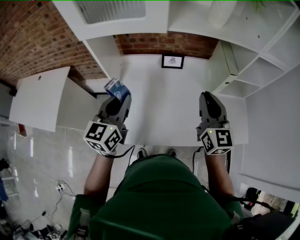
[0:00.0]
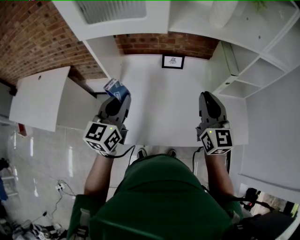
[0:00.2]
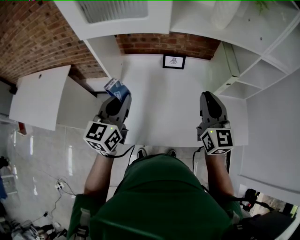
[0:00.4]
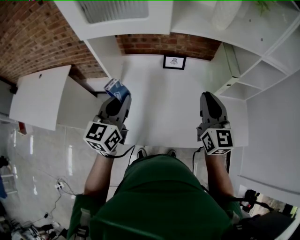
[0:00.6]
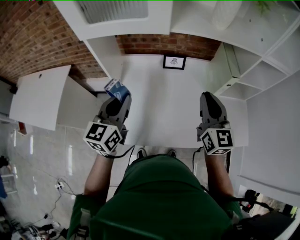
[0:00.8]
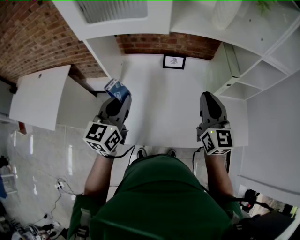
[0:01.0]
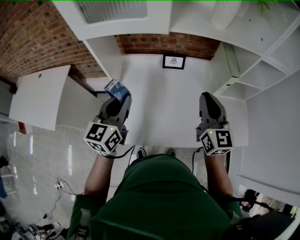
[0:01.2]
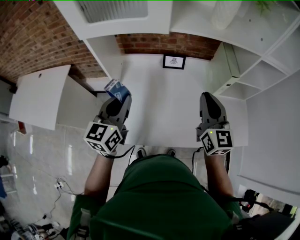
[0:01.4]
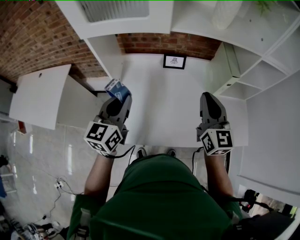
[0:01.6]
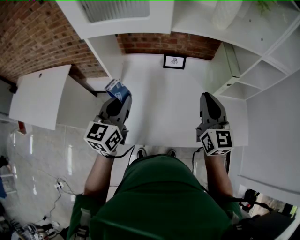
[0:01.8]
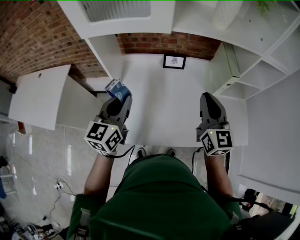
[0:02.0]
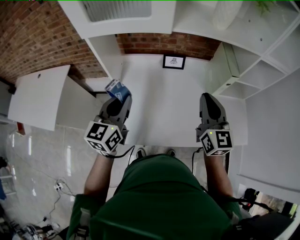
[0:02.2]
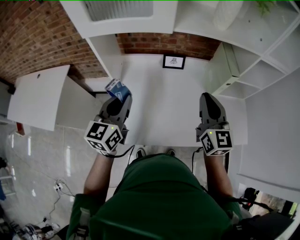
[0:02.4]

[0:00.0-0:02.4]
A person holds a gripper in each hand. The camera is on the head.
0:00.0 to 0:01.2: The two grippers keep their place.
0:01.2 to 0:02.4: Both grippers stay about where they are.

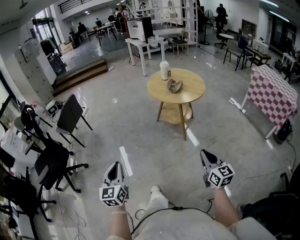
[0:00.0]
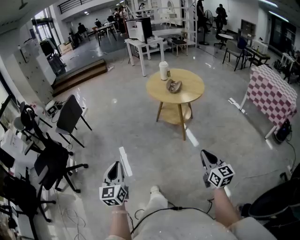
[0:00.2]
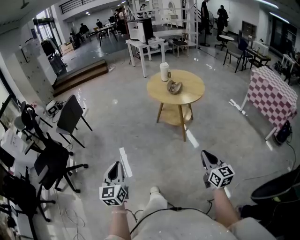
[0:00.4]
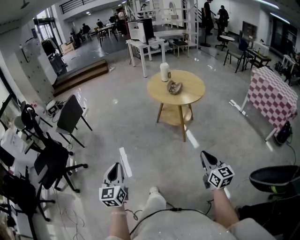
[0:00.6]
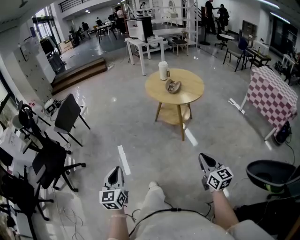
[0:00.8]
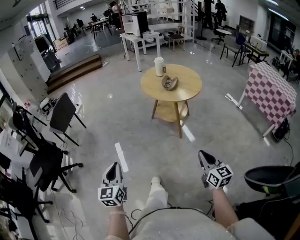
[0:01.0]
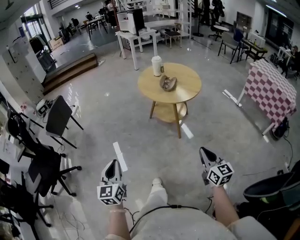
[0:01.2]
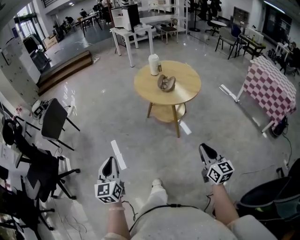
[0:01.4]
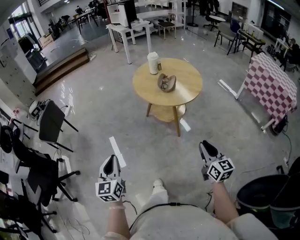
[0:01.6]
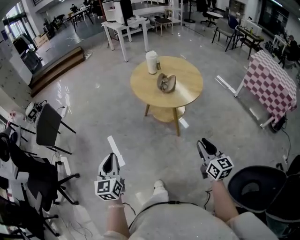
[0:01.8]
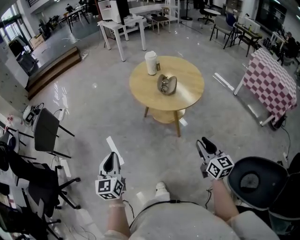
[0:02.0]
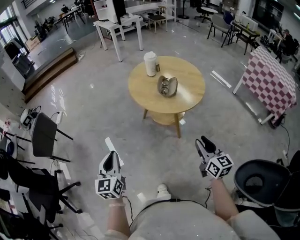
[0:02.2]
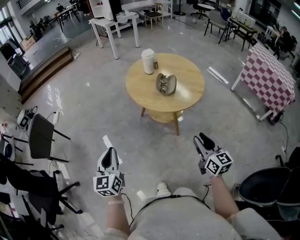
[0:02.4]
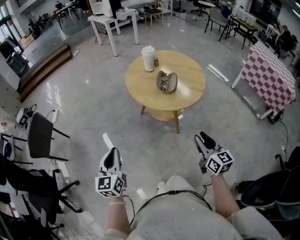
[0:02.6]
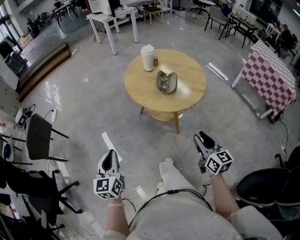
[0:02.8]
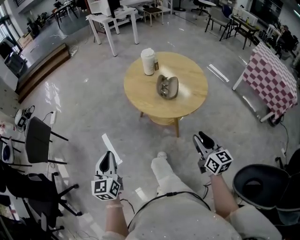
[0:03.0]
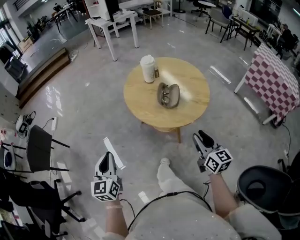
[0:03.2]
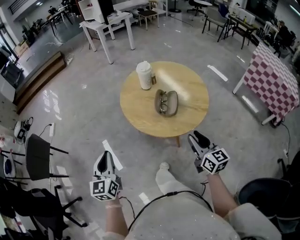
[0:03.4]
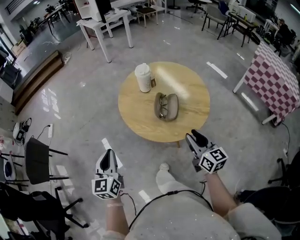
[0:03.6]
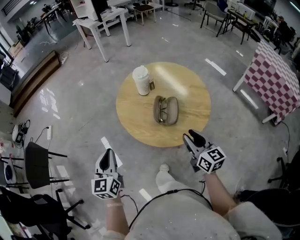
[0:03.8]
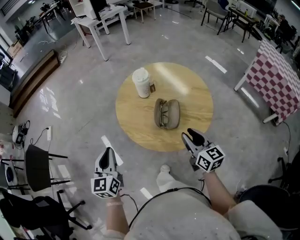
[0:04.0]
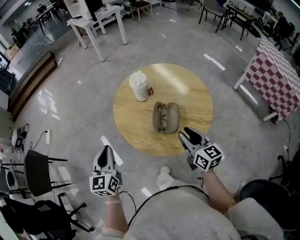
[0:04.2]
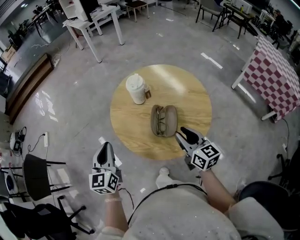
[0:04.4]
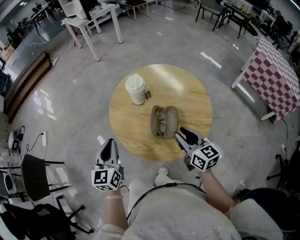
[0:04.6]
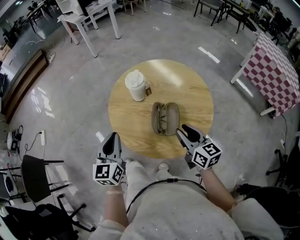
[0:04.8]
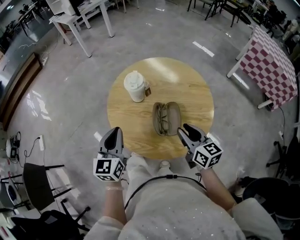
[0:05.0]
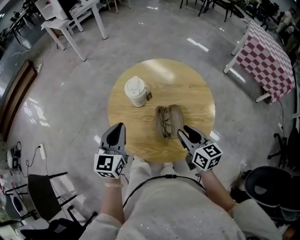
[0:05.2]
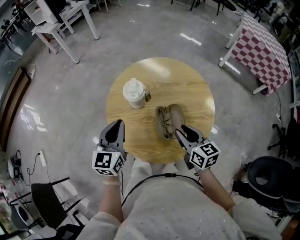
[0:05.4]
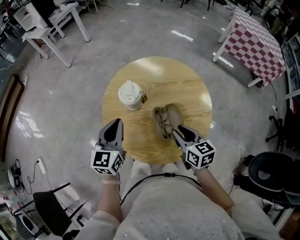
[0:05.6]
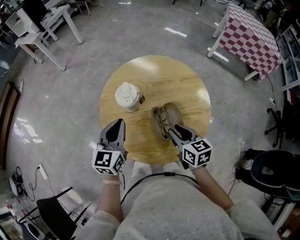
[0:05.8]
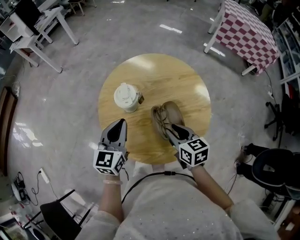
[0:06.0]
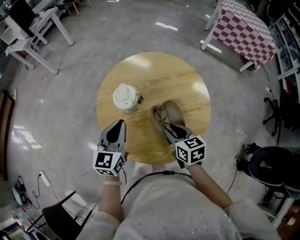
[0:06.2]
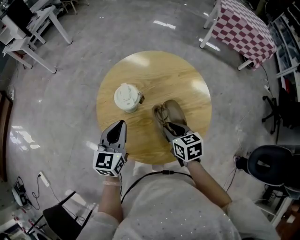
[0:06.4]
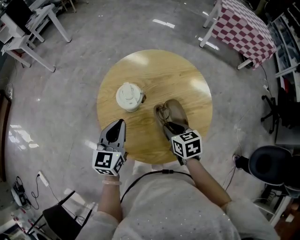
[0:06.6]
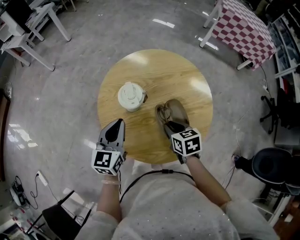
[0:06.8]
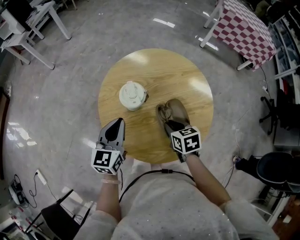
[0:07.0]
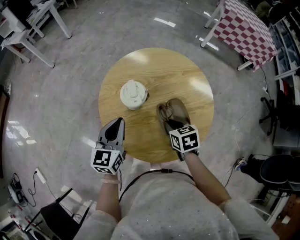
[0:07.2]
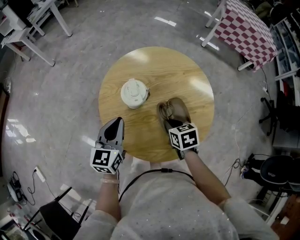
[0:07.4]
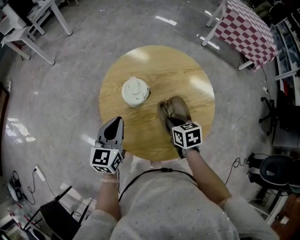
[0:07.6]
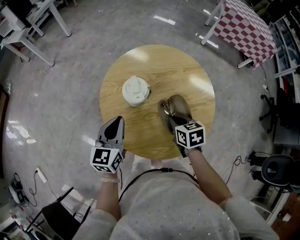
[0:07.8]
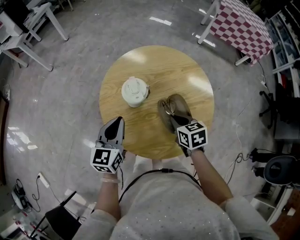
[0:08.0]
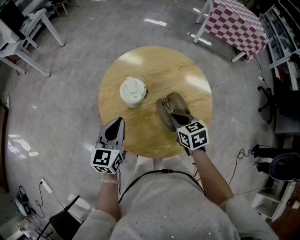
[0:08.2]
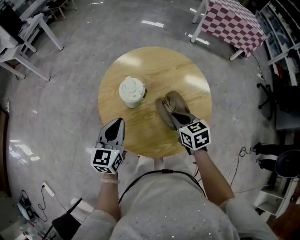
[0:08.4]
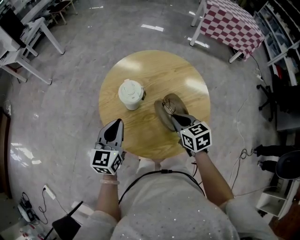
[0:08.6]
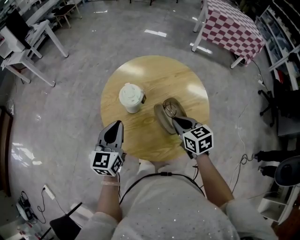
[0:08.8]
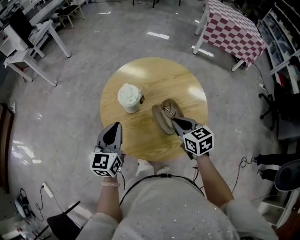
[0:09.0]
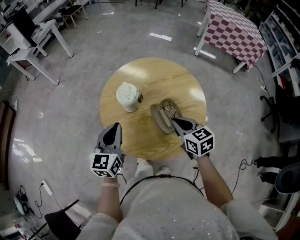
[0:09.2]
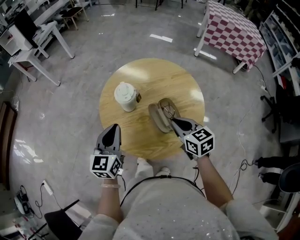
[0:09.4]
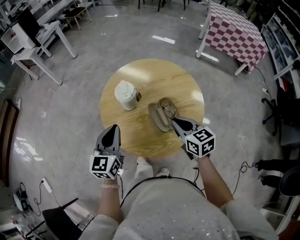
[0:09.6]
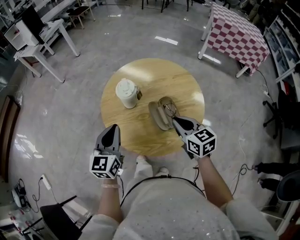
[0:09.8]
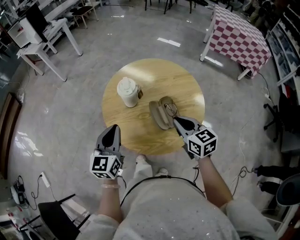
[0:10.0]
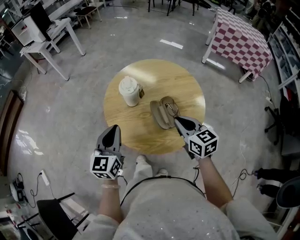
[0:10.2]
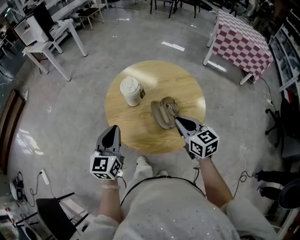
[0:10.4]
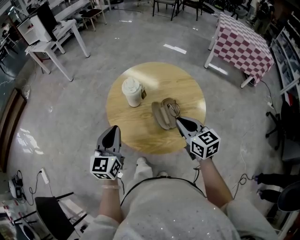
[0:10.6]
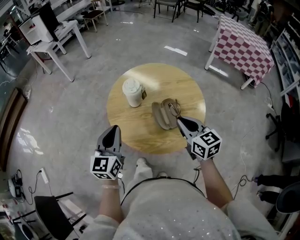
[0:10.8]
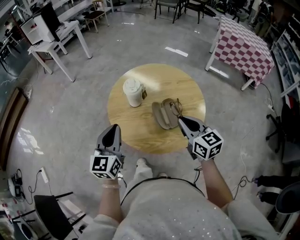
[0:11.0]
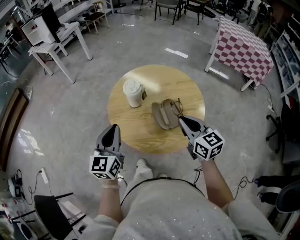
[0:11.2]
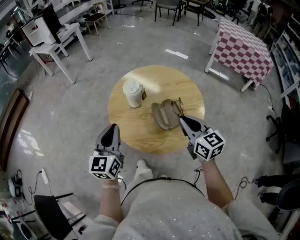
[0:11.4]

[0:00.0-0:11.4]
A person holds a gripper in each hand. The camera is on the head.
0:00.0 to 0:01.4: The grippers both shift forward by roughly 15 cm.
0:01.4 to 0:02.8: The grippers both shift forward by some 20 cm. The right gripper opens its fingers.
0:02.8 to 0:04.2: Both grippers move forward, roughly 30 cm.
0:04.2 to 0:05.6: The right gripper shifts by roughly 10 cm, and rotates roughly 20 degrees. The left gripper moves roughly 20 cm, and changes its angle by about 30 degrees.
0:05.6 to 0:07.2: The left gripper changes place by approximately 5 cm. The right gripper is displaced downward by about 10 cm, and rotates approximately 30 degrees.
0:07.2 to 0:08.6: The right gripper goes about 5 cm upward.
0:08.6 to 0:10.0: The left gripper shifts about 5 cm backward; the right gripper goes some 5 cm upward.
0:10.0 to 0:11.4: The left gripper ends up roughly 5 cm from where it was; the right gripper shifts roughly 5 cm upward.

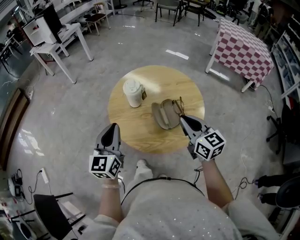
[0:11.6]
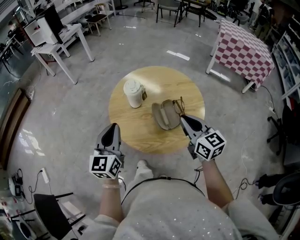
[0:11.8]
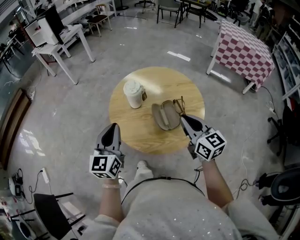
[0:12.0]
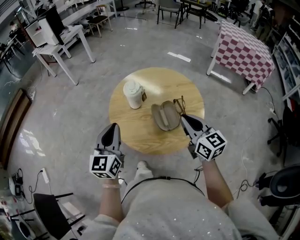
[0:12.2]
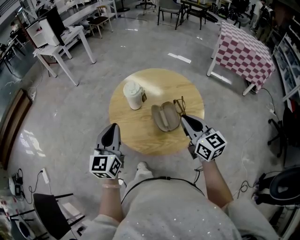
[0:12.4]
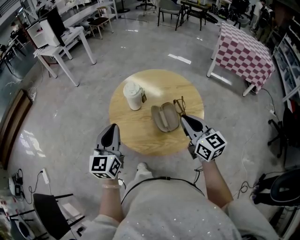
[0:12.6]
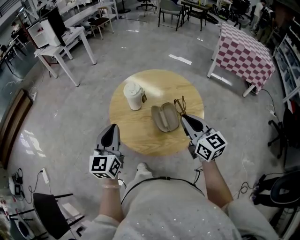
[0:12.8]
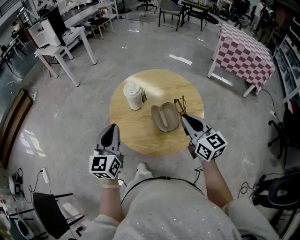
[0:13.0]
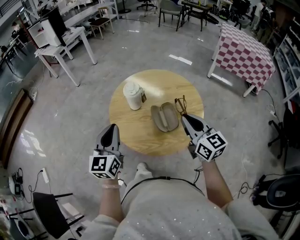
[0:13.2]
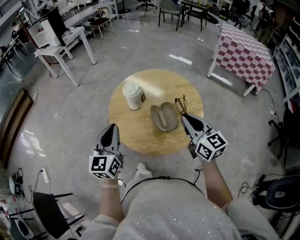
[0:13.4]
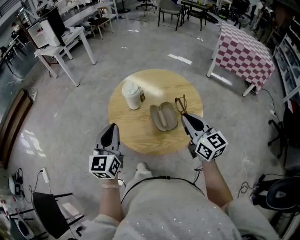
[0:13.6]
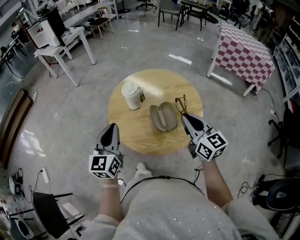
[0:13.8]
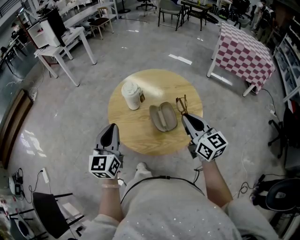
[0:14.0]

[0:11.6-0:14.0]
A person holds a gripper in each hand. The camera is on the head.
0:11.6 to 0:14.0: The grippers stay close to where they were, moving slightly.

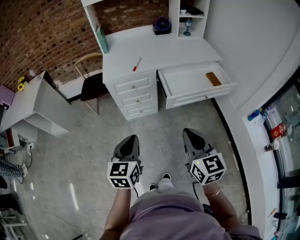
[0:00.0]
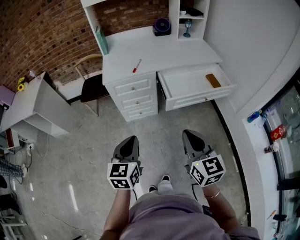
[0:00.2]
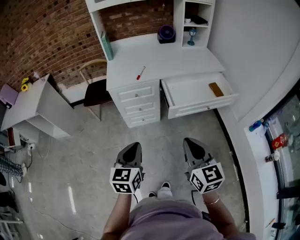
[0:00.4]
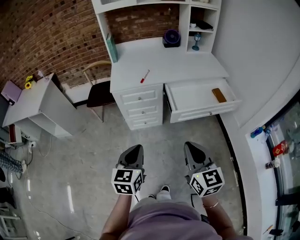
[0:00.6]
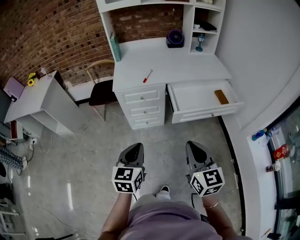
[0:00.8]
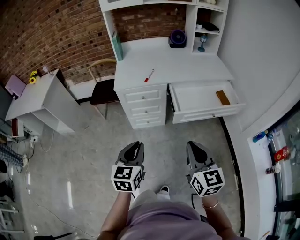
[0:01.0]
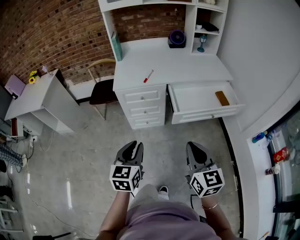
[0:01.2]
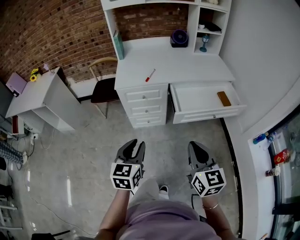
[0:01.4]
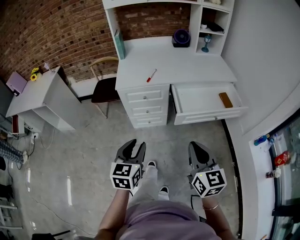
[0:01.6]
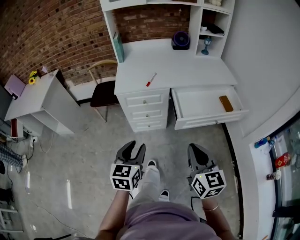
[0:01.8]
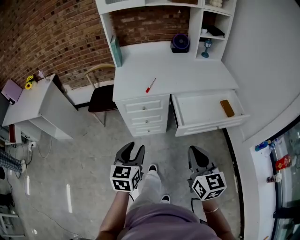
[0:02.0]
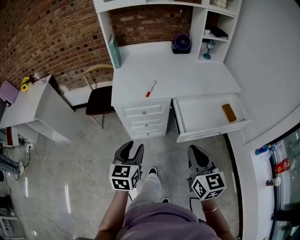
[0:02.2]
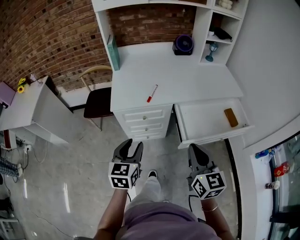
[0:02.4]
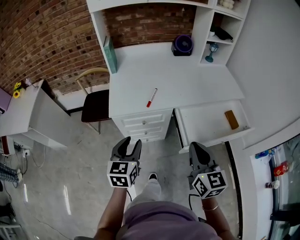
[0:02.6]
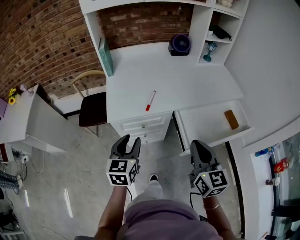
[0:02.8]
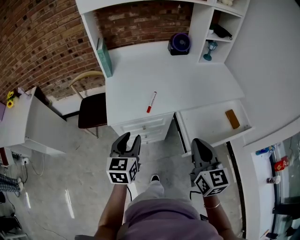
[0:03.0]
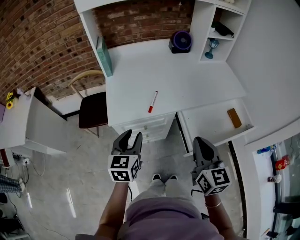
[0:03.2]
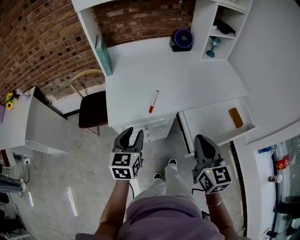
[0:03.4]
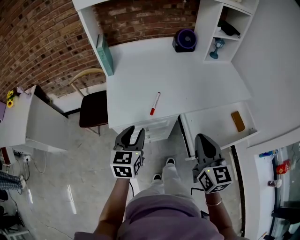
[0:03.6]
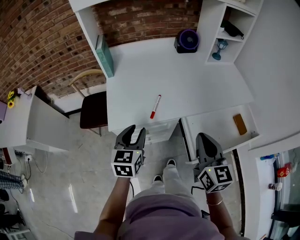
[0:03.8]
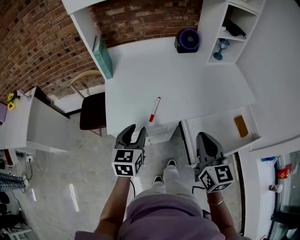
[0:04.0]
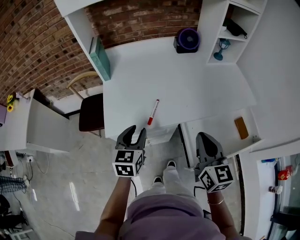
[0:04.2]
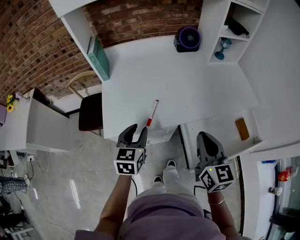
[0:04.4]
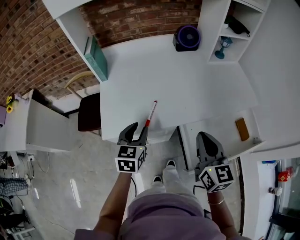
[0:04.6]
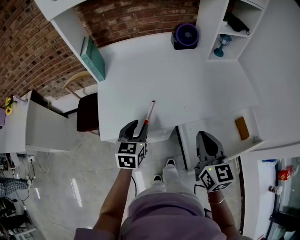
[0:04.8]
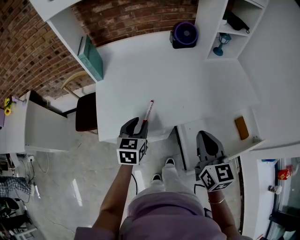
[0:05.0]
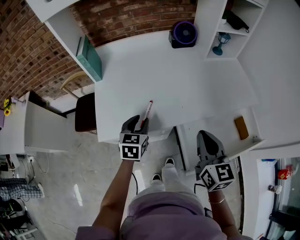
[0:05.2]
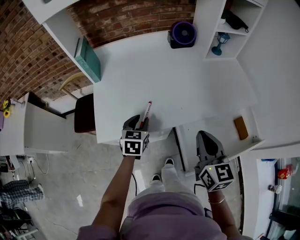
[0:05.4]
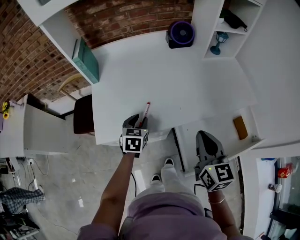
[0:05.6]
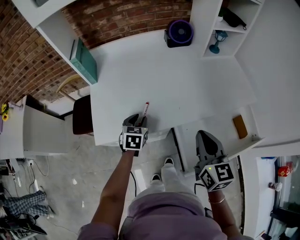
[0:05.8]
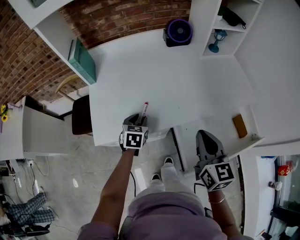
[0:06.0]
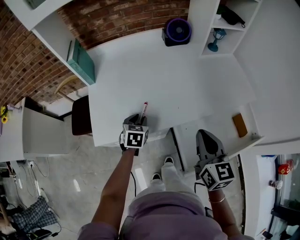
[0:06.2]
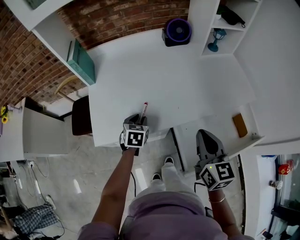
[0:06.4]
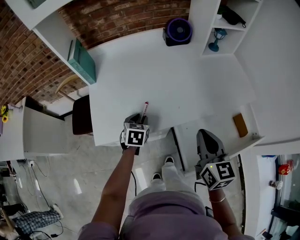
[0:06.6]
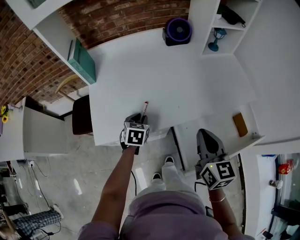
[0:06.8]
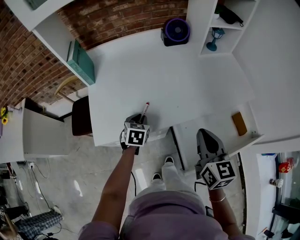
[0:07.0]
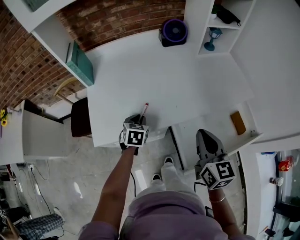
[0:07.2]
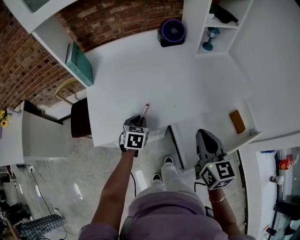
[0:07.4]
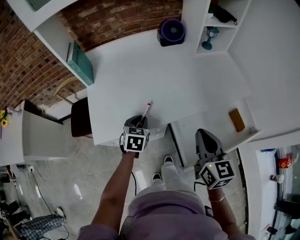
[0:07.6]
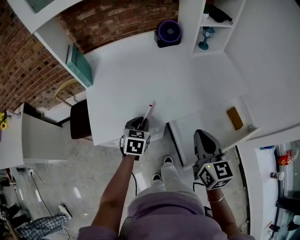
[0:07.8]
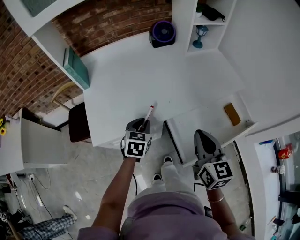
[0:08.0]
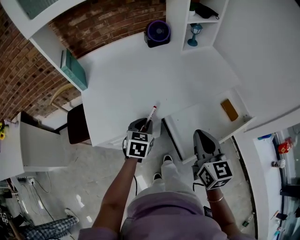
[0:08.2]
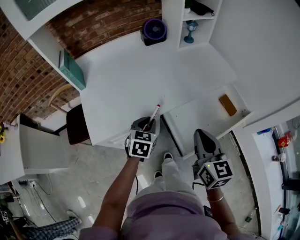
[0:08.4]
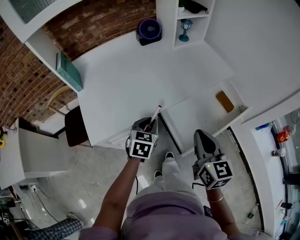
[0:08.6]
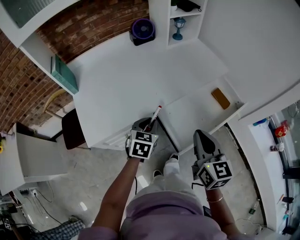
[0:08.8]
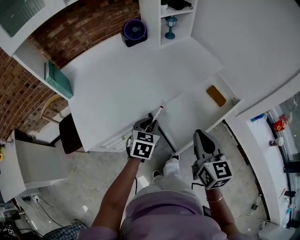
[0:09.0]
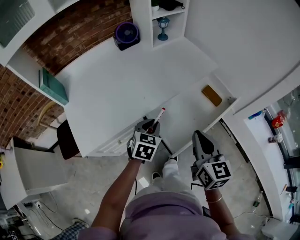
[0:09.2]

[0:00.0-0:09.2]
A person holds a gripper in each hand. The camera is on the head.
0:00.0 to 0:01.6: The left gripper opens its fingers.
0:01.6 to 0:03.0: Both grippers travel together forward, roughly 30 cm.
0:03.0 to 0:04.6: The two grippers go approximately 15 cm forward.
0:04.6 to 0:06.2: The left gripper travels downward and forward by roughly 15 cm, while the right gripper moves about 5 cm.
0:06.2 to 0:07.6: The grippers stay close to where they were, moving slightly.
0:07.6 to 0:09.2: The left gripper is displaced to the right by roughly 20 cm, and changes its angle by approximately 30 degrees, while the right gripper travels backward and to the right by about 15 cm.
